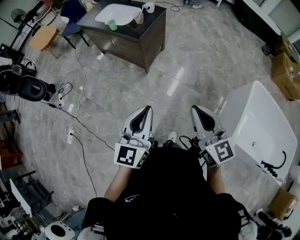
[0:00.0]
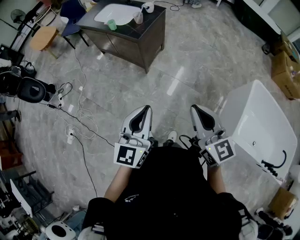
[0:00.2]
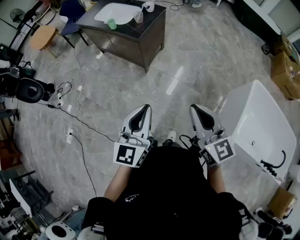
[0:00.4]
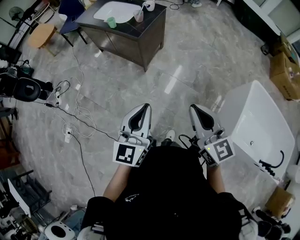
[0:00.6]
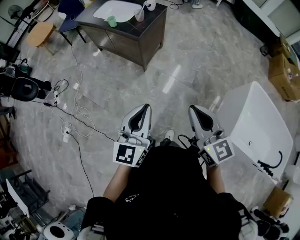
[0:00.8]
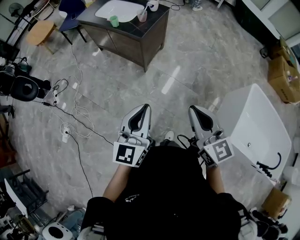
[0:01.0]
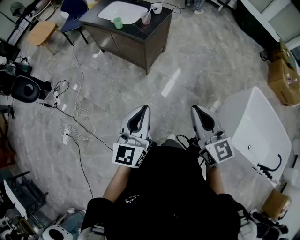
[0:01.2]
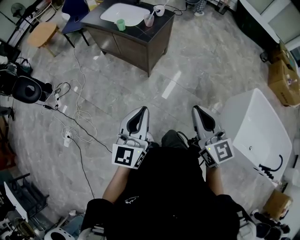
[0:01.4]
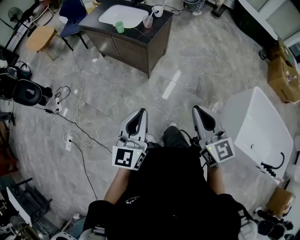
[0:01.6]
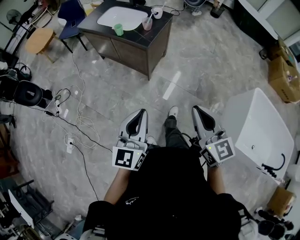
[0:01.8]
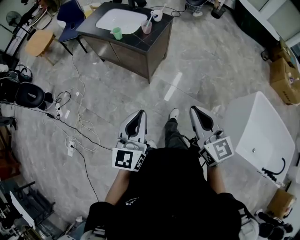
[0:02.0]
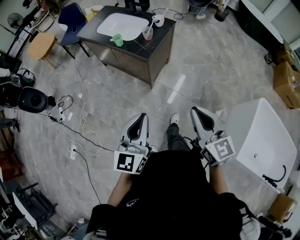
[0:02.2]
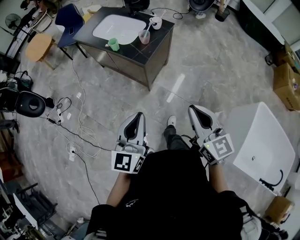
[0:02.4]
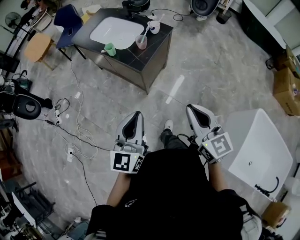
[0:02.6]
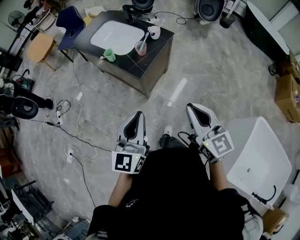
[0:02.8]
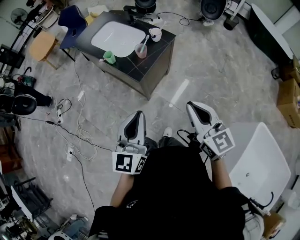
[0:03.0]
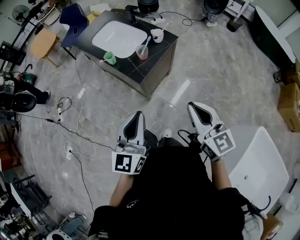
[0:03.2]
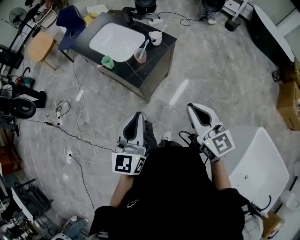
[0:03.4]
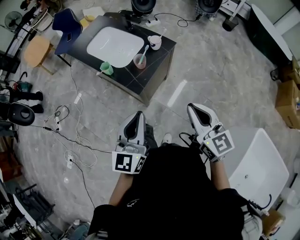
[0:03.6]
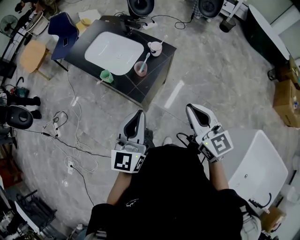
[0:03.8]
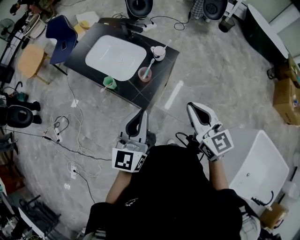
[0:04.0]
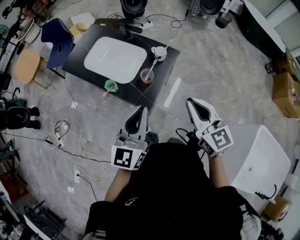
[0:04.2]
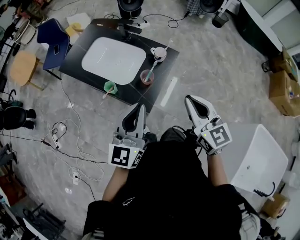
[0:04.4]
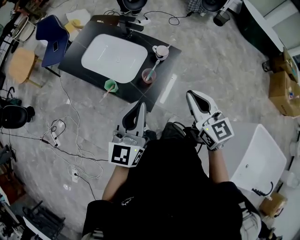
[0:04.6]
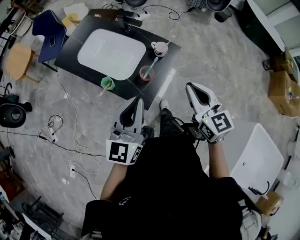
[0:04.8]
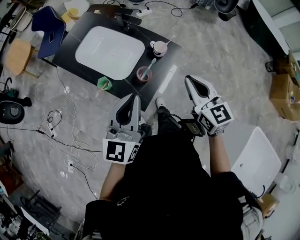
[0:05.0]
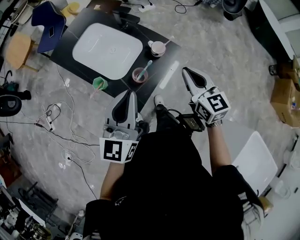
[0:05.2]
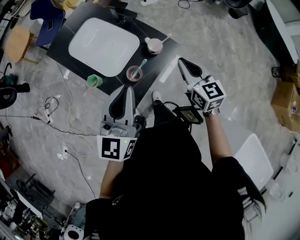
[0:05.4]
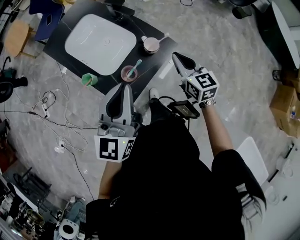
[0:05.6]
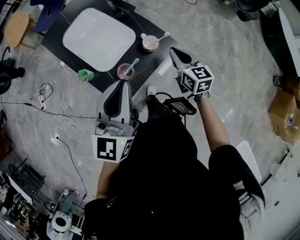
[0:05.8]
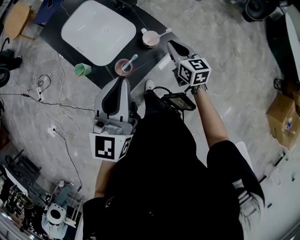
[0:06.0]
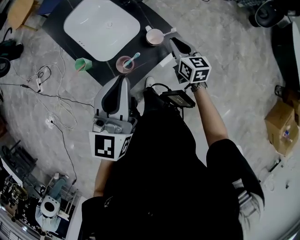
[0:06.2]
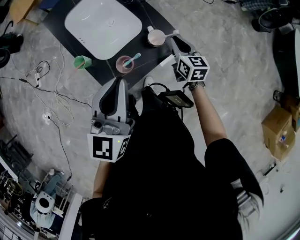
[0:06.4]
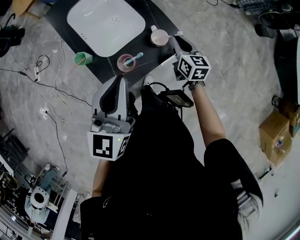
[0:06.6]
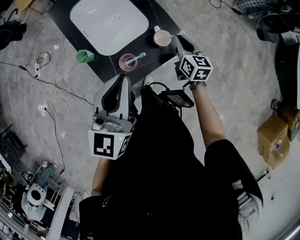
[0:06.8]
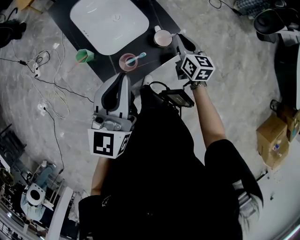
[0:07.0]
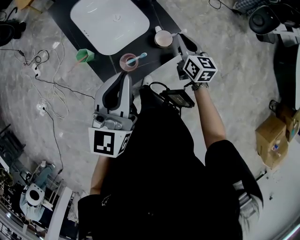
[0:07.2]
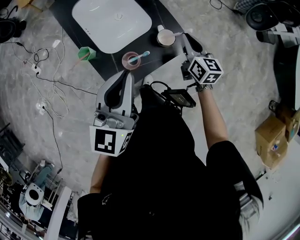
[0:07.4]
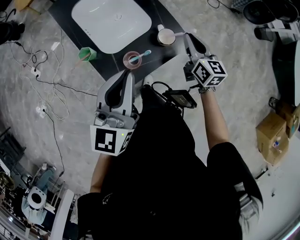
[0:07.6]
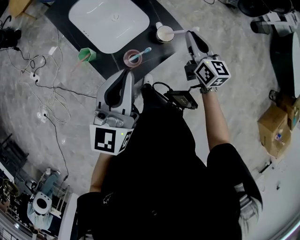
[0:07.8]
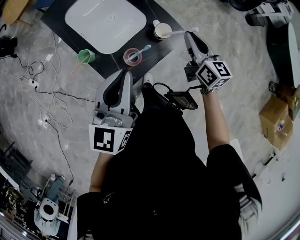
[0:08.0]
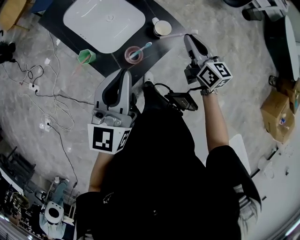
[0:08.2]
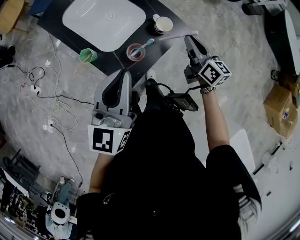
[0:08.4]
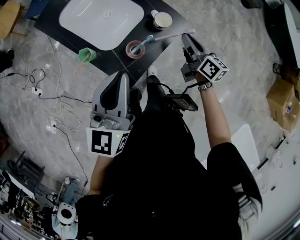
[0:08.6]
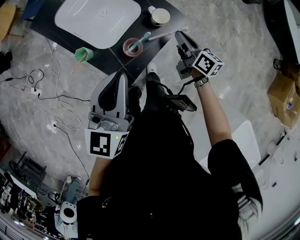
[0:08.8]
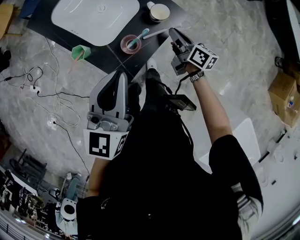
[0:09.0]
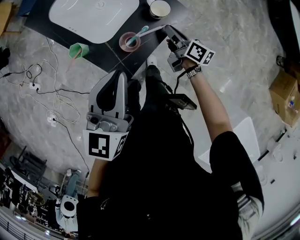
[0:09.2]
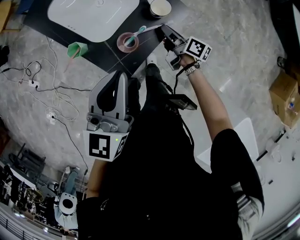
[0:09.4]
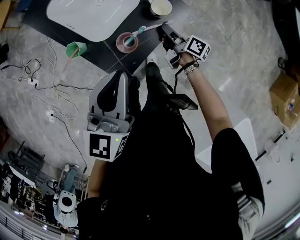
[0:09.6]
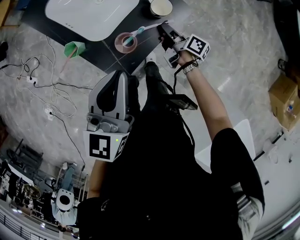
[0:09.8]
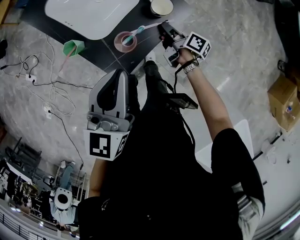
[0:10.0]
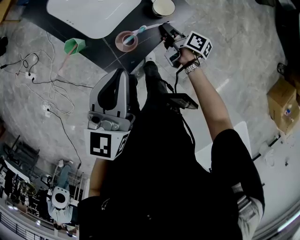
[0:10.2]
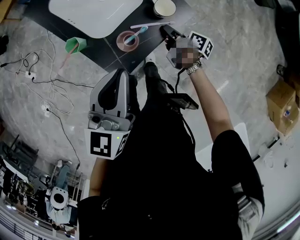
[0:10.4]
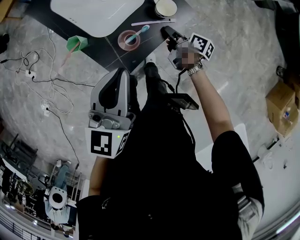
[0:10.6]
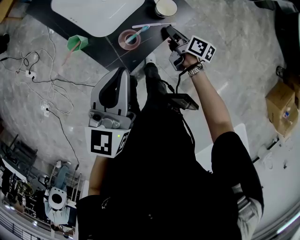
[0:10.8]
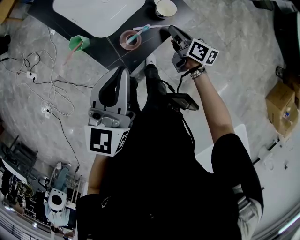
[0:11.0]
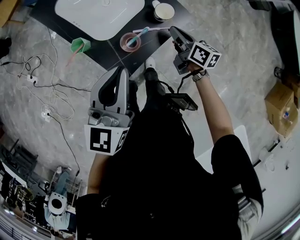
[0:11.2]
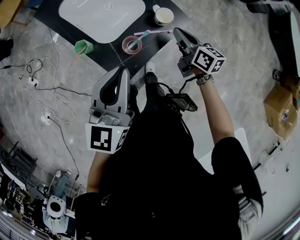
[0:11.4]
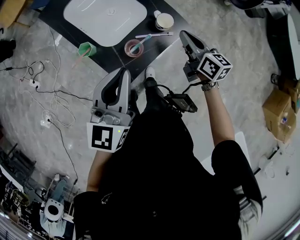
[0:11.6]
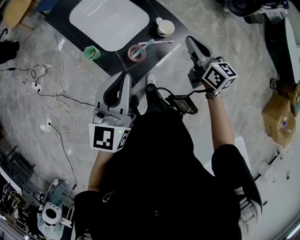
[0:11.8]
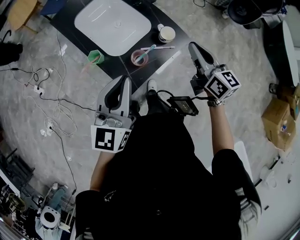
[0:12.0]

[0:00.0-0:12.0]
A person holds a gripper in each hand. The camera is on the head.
0:00.0 to 0:01.6: Both grippers move to the left and forward, roughly 10 cm.
0:01.6 to 0:03.0: The left gripper moves forward and to the right, some 35 cm. The right gripper travels forward by some 35 cm.
0:03.0 to 0:04.4: Both grippers move forward, about 25 cm.
0:04.4 to 0:06.0: The right gripper heads forward and downward, covering approximately 40 cm, and rotates approximately 20 degrees. The left gripper heads forward and to the right, covering roughly 20 cm, and rotates some 20 degrees.
0:06.0 to 0:07.6: The grippers move only a little.
0:07.6 to 0:09.0: The left gripper shifts by roughly 5 cm; the right gripper goes about 10 cm downward and backward, and swivels about 30 degrees.
0:09.0 to 0:10.4: The right gripper travels downward by some 10 cm, and swivels about 30 degrees.
0:10.4 to 0:12.0: The left gripper shifts some 5 cm upward. The right gripper heads upward, covering some 30 cm, and twists roughly 50 degrees counterclockwise, seen from behind.

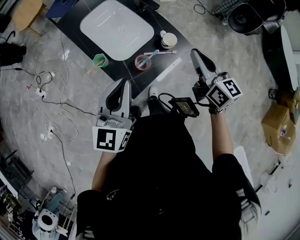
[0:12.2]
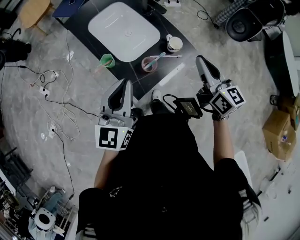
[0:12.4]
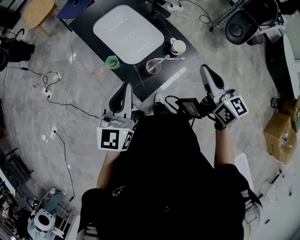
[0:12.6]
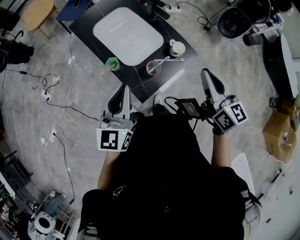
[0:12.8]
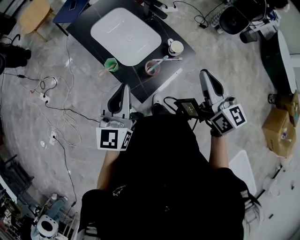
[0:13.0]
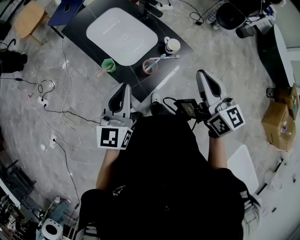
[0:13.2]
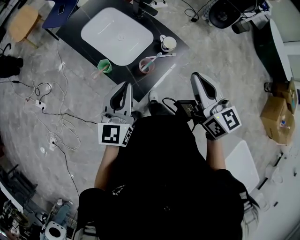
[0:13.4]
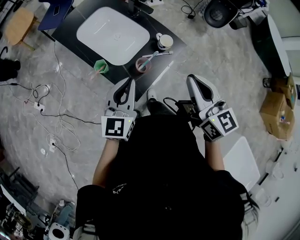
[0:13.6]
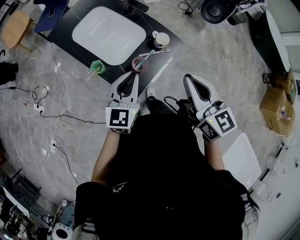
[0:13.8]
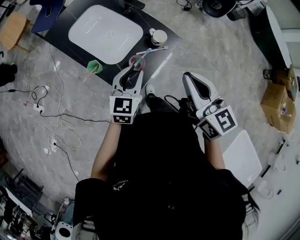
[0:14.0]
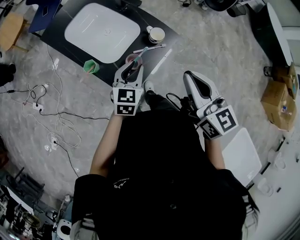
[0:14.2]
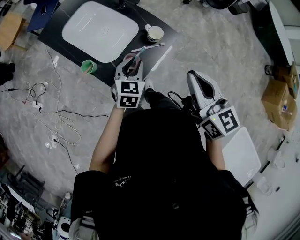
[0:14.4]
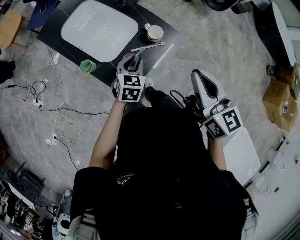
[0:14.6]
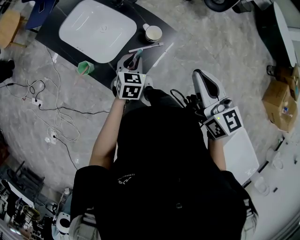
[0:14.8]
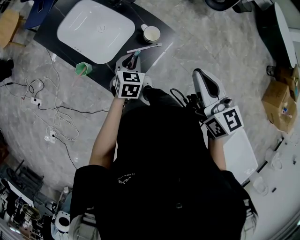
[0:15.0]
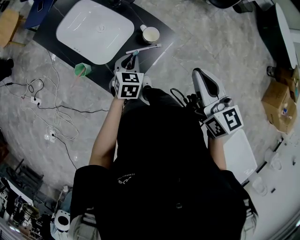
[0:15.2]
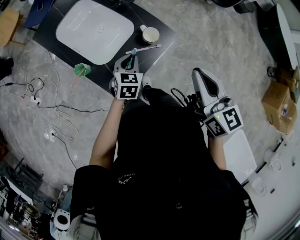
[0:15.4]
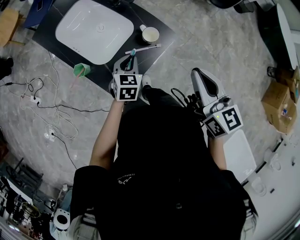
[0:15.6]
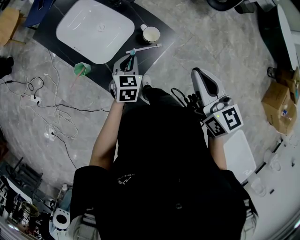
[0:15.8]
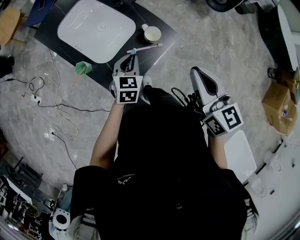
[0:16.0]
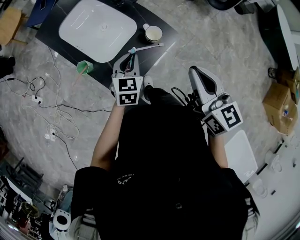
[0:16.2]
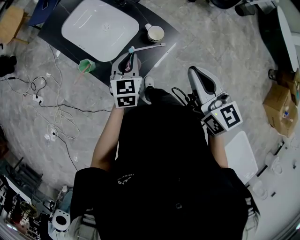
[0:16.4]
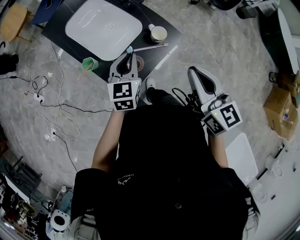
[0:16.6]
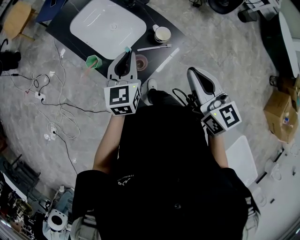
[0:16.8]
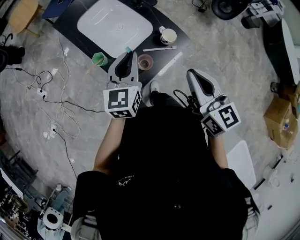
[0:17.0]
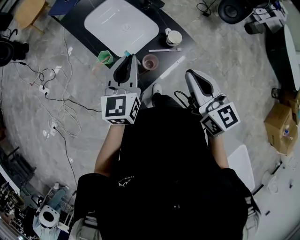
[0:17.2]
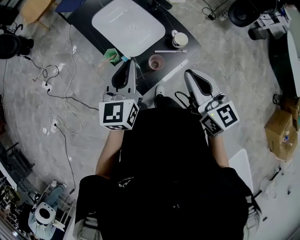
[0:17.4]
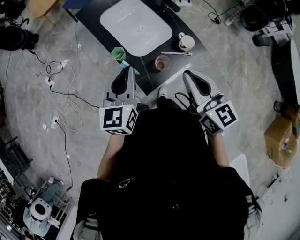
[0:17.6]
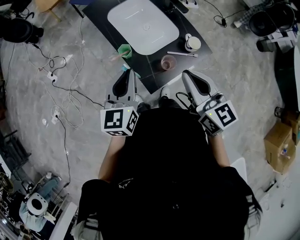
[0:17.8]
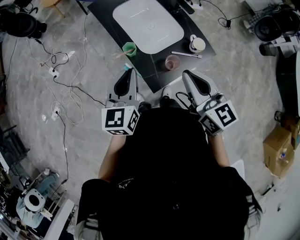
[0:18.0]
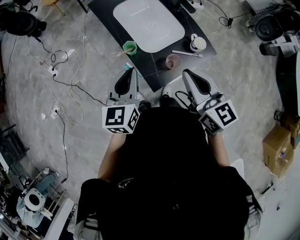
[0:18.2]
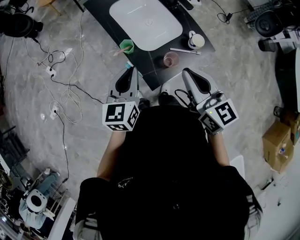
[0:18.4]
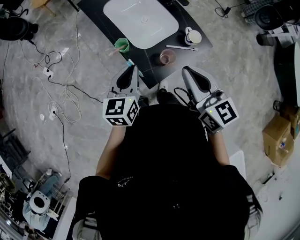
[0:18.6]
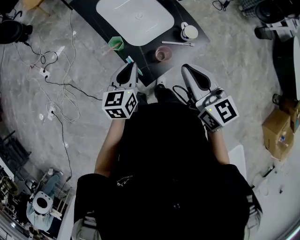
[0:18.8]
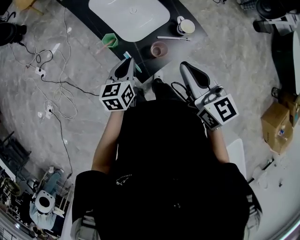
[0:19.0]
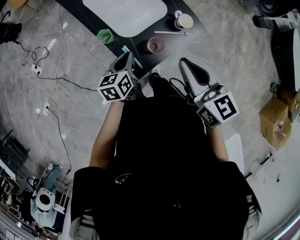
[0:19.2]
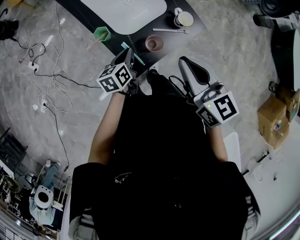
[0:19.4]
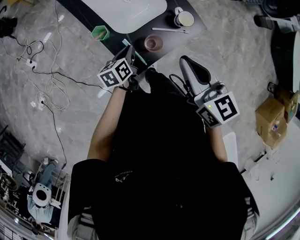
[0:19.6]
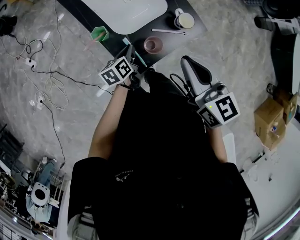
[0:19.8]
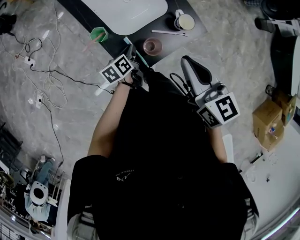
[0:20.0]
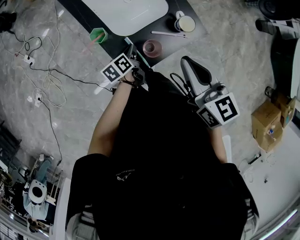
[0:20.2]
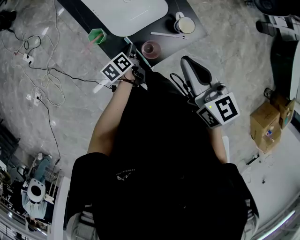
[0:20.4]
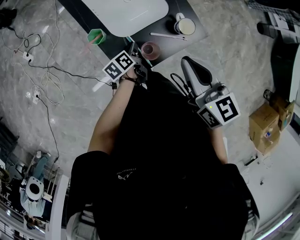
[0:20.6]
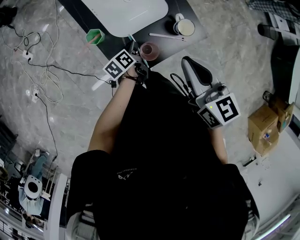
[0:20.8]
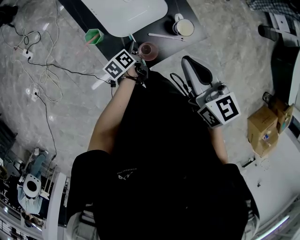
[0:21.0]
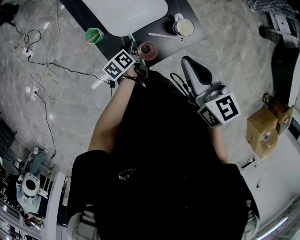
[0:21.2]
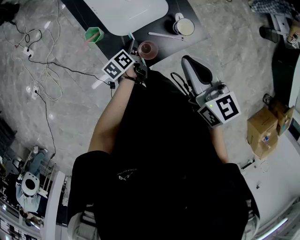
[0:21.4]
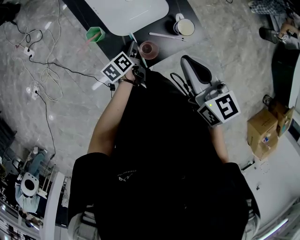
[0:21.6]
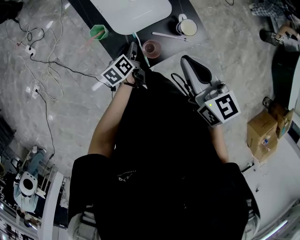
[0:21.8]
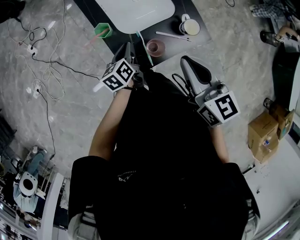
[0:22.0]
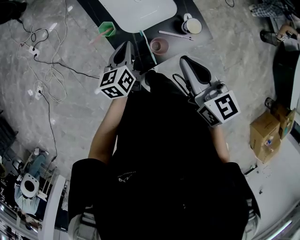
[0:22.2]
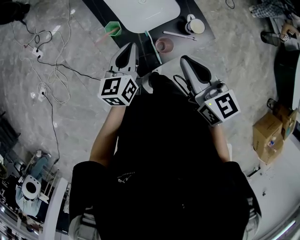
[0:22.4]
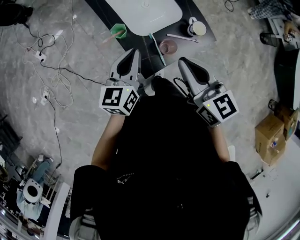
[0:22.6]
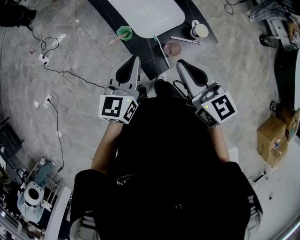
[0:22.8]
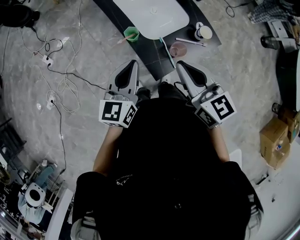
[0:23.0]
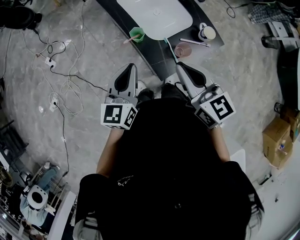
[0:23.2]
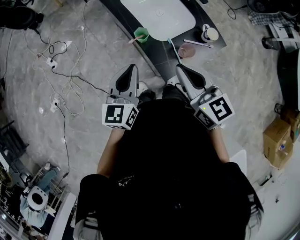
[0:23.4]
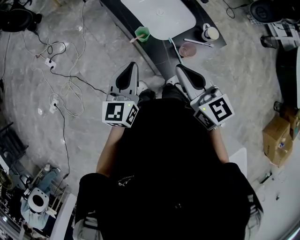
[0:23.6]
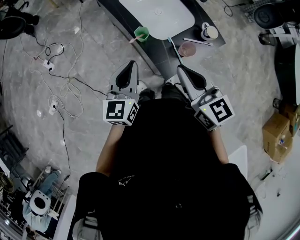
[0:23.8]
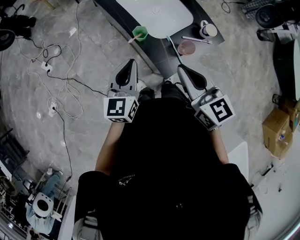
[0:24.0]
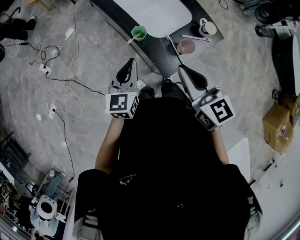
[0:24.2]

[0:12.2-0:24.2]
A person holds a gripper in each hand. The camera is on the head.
0:12.2 to 0:13.8: The left gripper shifts about 10 cm downward, while the right gripper goes roughly 15 cm backward, to the left and upward.
0:13.8 to 0:15.2: The left gripper heads downward, forward and to the right, covering about 20 cm, and tilts its fingers some 30 degrees downward; the right gripper moves to the right and forward, about 10 cm.
0:15.2 to 0:16.6: The left gripper heads upward, covering about 10 cm, and swivels some 20 degrees.
0:16.6 to 0:18.2: The left gripper moves to the left, upward and backward, about 20 cm. The right gripper is displaced to the left by about 15 cm, and turns by about 20 degrees.
0:18.2 to 0:19.8: The right gripper goes about 10 cm to the right and downward. The left gripper travels downward by some 25 cm, and rotates some 40 degrees.
0:19.8 to 0:21.2: The right gripper moves some 5 cm. Meanwhile the left gripper shifts some 5 cm downward, and rotates approximately 20 degrees.
0:21.2 to 0:22.6: The left gripper travels upward by about 25 cm, rolls clockwise, seen from behind, by roughly 40 degrees, and opens, then closes again; the right gripper shifts some 10 cm to the left.
0:22.6 to 0:24.2: The two grippers go roughly 10 cm to the left.
